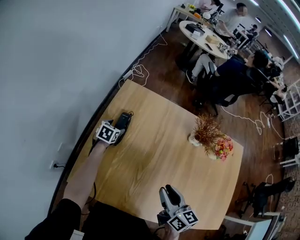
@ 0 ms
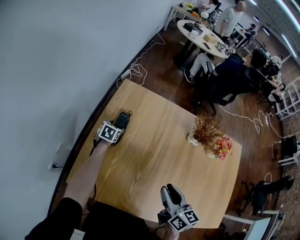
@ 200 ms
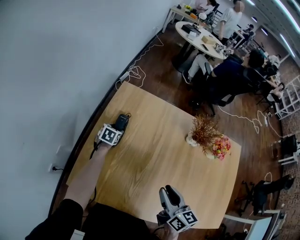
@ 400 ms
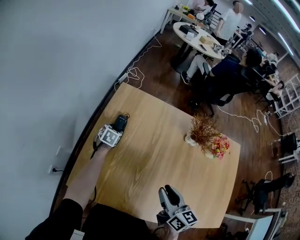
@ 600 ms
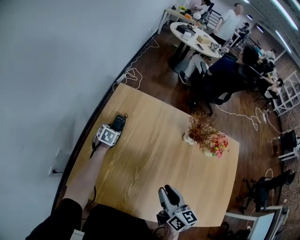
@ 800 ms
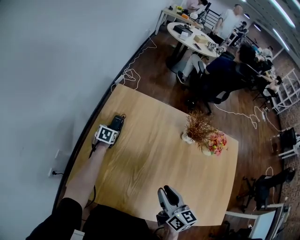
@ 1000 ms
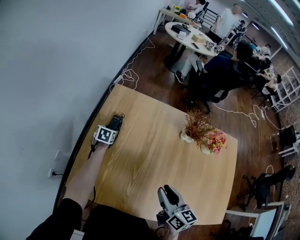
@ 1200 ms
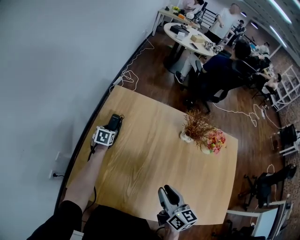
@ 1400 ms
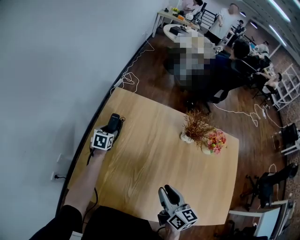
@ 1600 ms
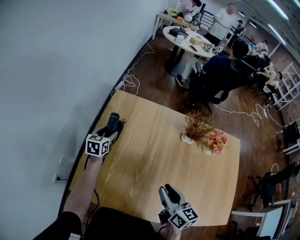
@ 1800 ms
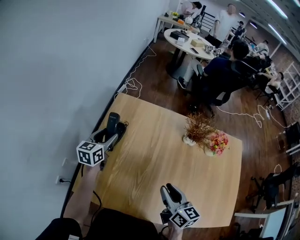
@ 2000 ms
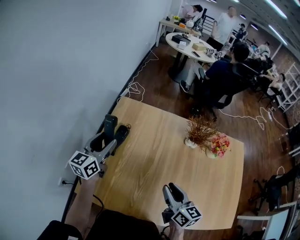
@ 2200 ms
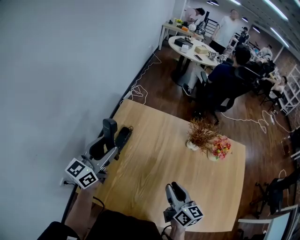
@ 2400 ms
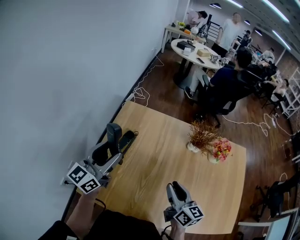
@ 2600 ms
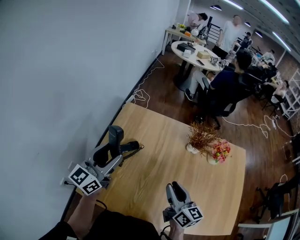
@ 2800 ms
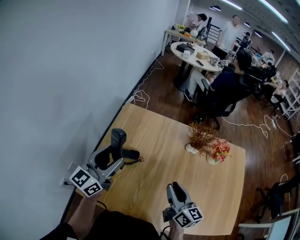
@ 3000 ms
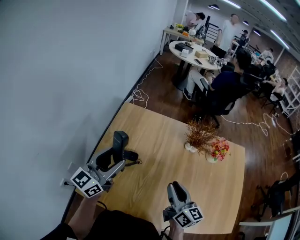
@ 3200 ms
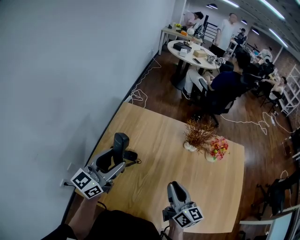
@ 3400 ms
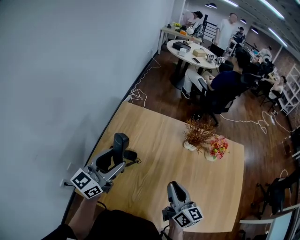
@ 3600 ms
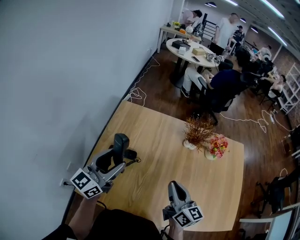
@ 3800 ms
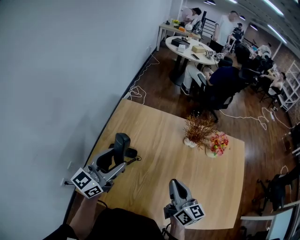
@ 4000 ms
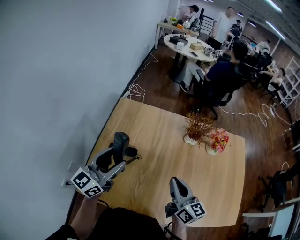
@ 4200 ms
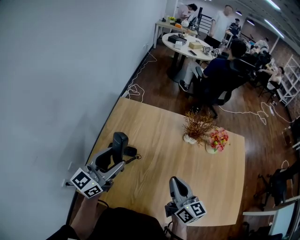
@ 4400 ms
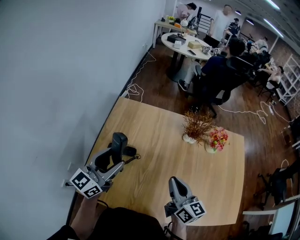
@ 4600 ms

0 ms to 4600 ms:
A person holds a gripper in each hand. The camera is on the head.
0 ms to 1600 ms: The grippers make only small movements.
1600 ms to 3000 ms: The right gripper changes place by roughly 5 cm. Meanwhile the left gripper shifts about 35 cm upward and backward, and angles its fingers upward, by roughly 50 degrees.
3000 ms to 4600 ms: The right gripper closes its fingers.

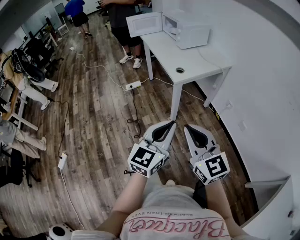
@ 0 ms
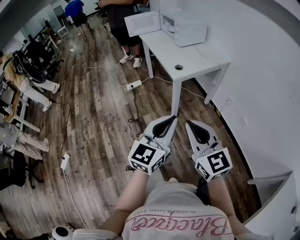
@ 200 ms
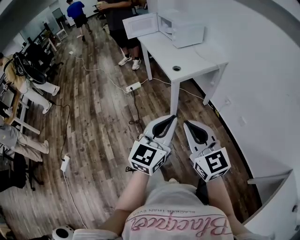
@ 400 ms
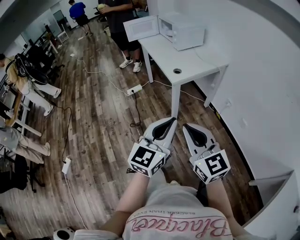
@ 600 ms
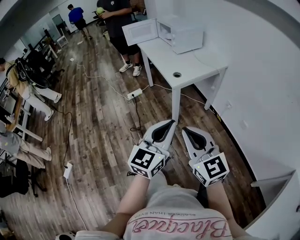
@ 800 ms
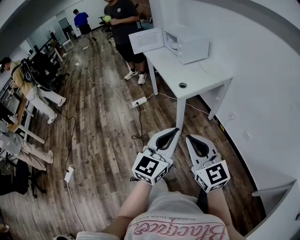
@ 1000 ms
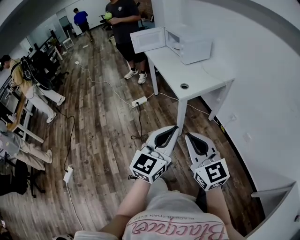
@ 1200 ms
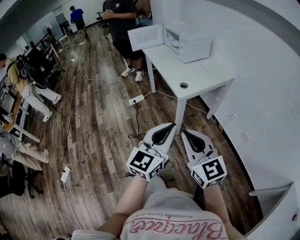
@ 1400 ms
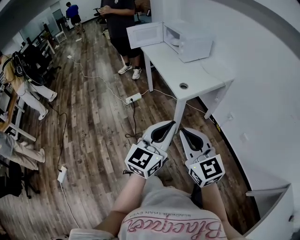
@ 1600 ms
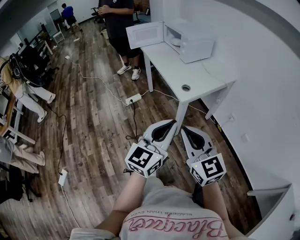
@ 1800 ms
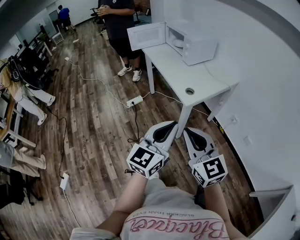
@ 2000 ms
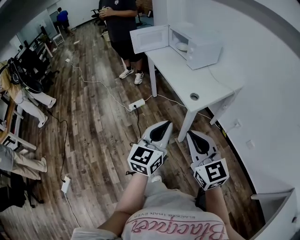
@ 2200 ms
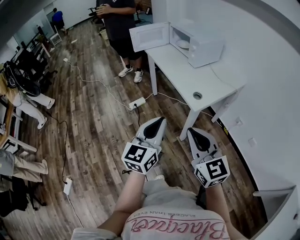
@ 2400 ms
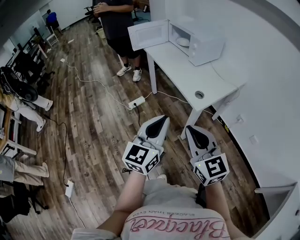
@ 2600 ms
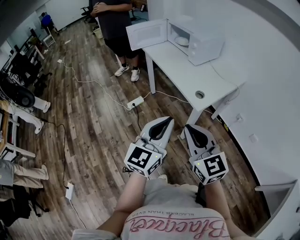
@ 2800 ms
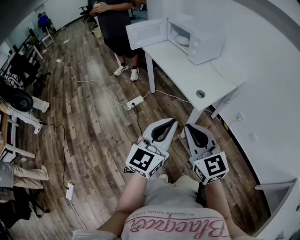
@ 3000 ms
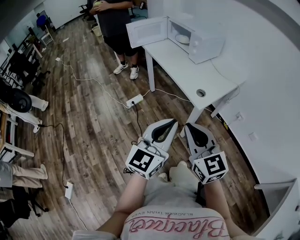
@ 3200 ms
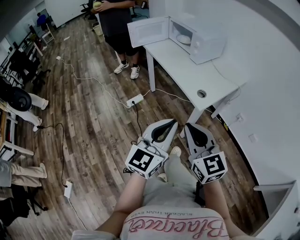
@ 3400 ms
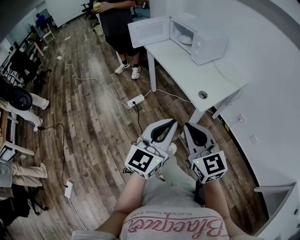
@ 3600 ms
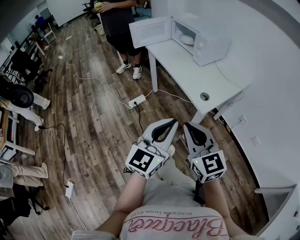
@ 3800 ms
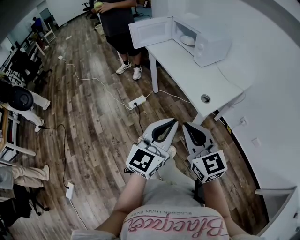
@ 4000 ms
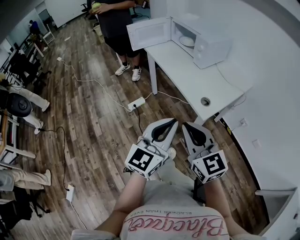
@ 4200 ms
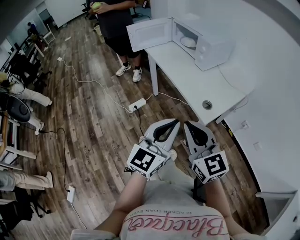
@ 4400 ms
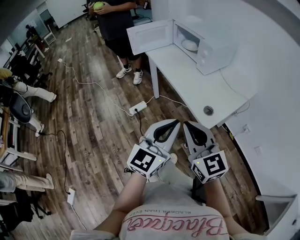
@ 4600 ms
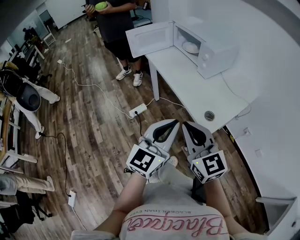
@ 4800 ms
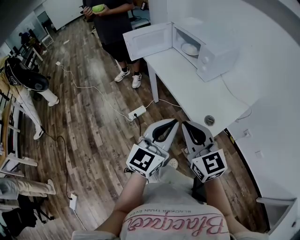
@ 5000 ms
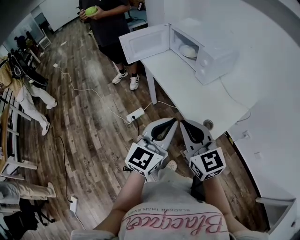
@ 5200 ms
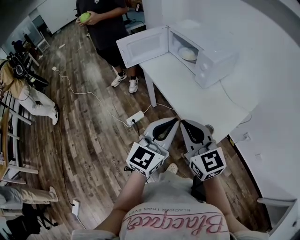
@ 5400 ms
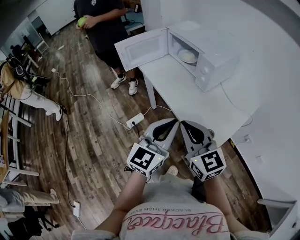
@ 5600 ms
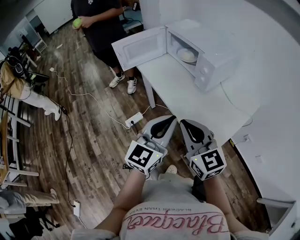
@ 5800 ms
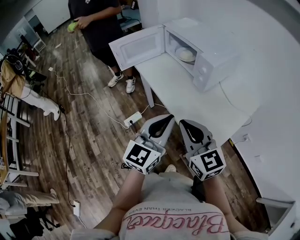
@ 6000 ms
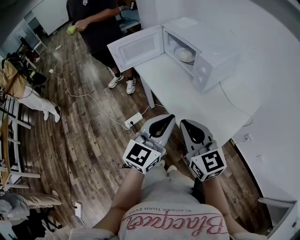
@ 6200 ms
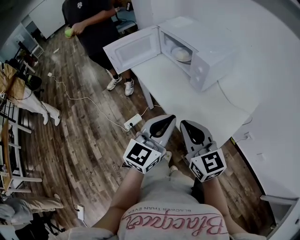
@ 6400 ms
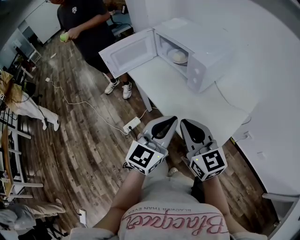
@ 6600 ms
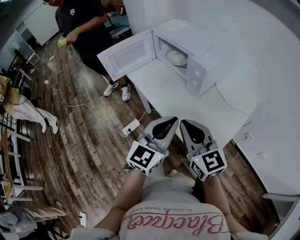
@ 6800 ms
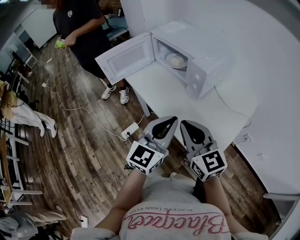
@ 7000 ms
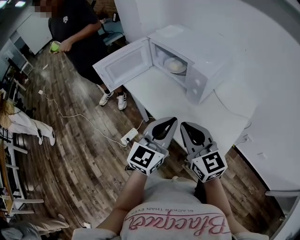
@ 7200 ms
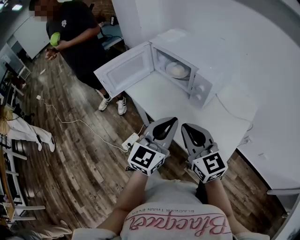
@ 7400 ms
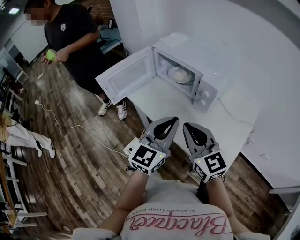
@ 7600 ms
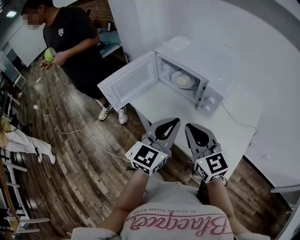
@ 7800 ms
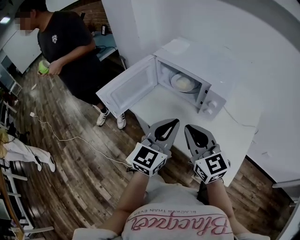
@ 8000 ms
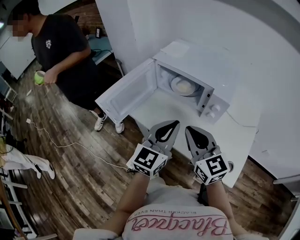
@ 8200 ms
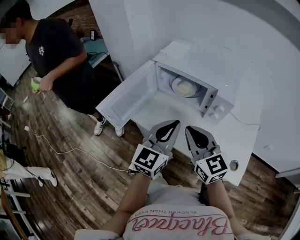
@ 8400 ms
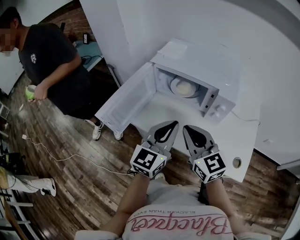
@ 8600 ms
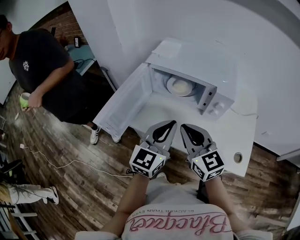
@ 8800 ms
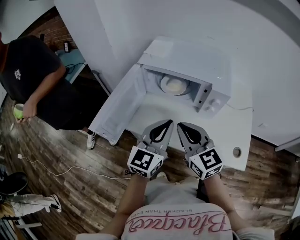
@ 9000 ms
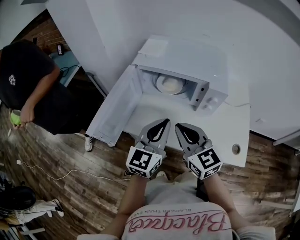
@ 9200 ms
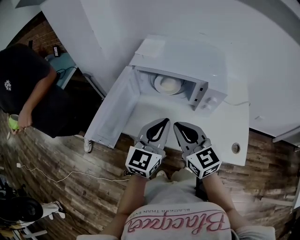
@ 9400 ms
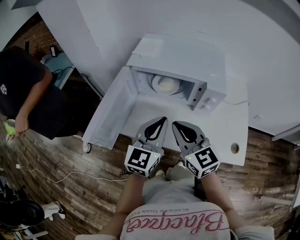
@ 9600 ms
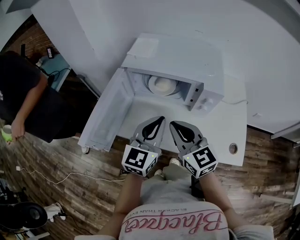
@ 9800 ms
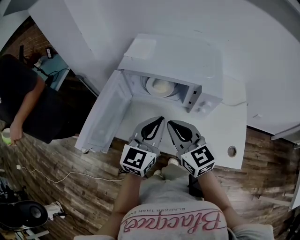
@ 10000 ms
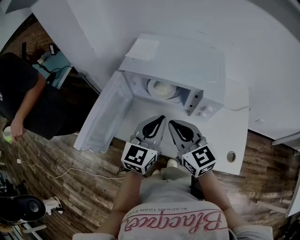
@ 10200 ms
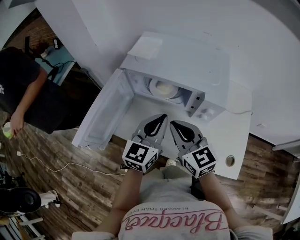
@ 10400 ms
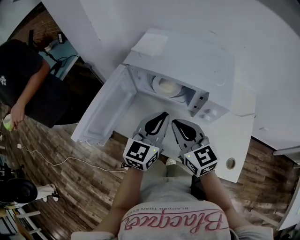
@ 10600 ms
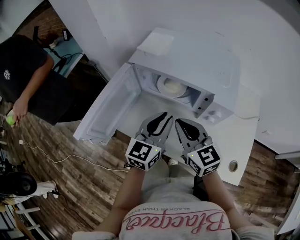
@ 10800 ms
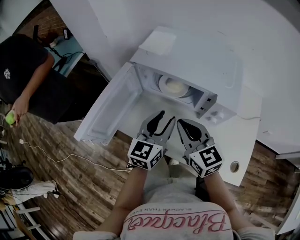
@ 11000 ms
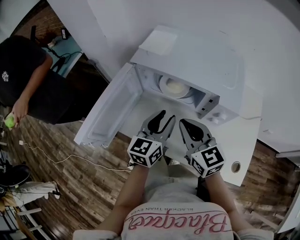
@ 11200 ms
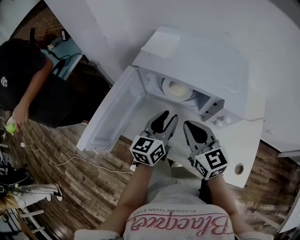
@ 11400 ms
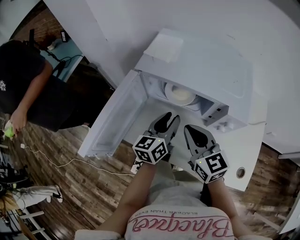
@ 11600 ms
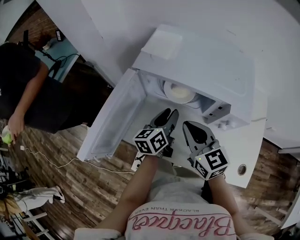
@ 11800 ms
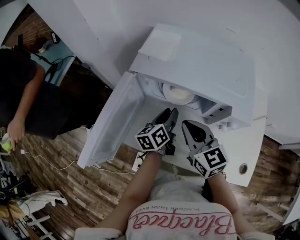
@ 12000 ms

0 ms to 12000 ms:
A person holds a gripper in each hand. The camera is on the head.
0 ms to 1600 ms: The left gripper goes about 10 cm forward. Meanwhile the right gripper goes about 10 cm forward and to the left.
1600 ms to 3000 ms: The left gripper heads to the left and forward, covering roughly 20 cm, while the right gripper travels forward and to the left by about 20 cm.
3000 ms to 4400 ms: The grippers both shift forward by about 10 cm.
4400 ms to 6000 ms: The grippers both shift forward by roughly 25 cm.
6000 ms to 7600 ms: The grippers both shift forward by some 15 cm.
7600 ms to 9000 ms: The two grippers go approximately 20 cm to the left and forward. The right gripper changes its angle by approximately 20 degrees.
9000 ms to 10400 ms: The two grippers go about 10 cm forward.
10400 ms to 12000 ms: The left gripper shifts approximately 20 cm downward and forward, rotates around the line of its fingers by about 40 degrees, counterclockwise from behind, and opens up, while the right gripper shifts about 10 cm forward and downward.

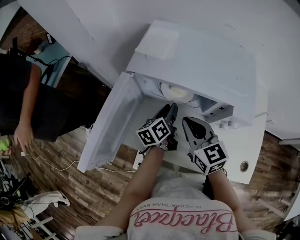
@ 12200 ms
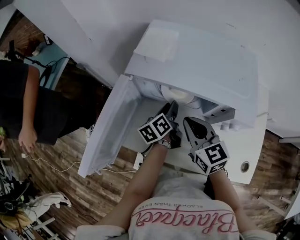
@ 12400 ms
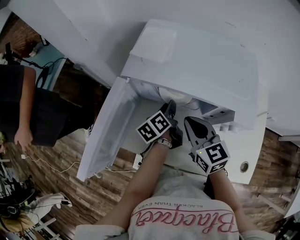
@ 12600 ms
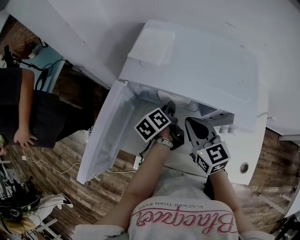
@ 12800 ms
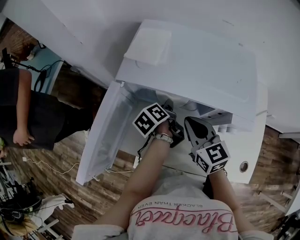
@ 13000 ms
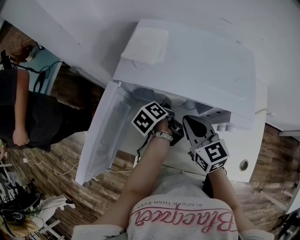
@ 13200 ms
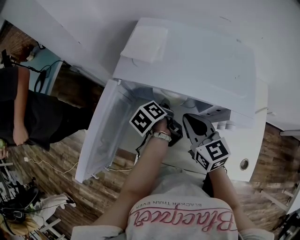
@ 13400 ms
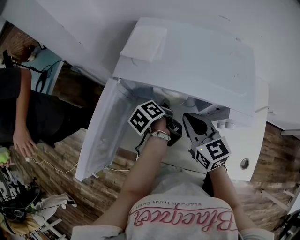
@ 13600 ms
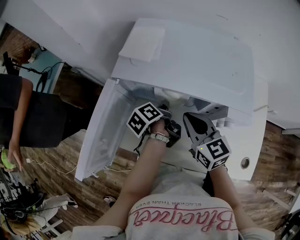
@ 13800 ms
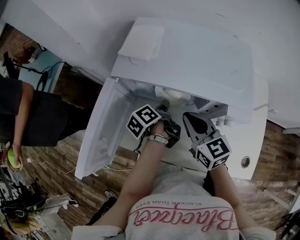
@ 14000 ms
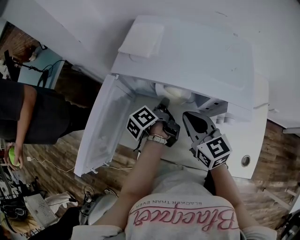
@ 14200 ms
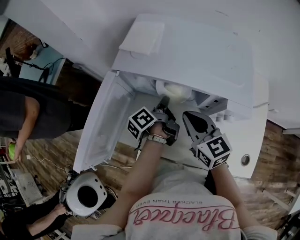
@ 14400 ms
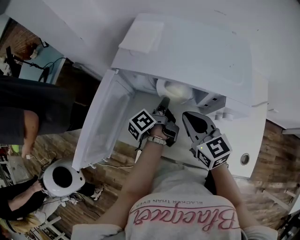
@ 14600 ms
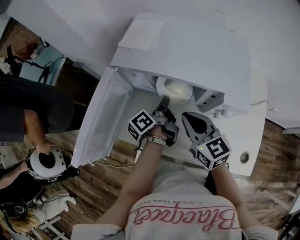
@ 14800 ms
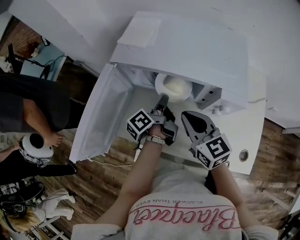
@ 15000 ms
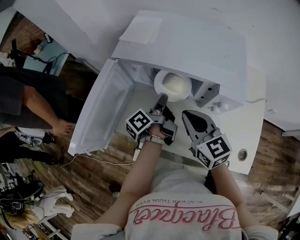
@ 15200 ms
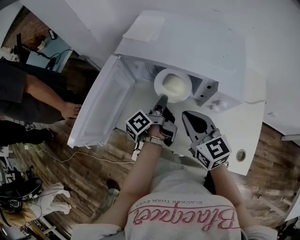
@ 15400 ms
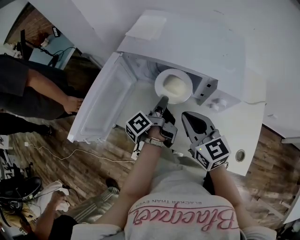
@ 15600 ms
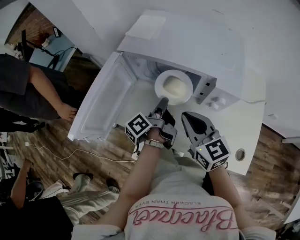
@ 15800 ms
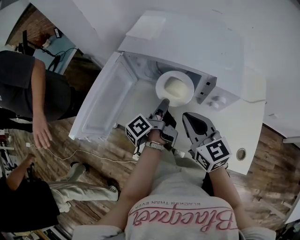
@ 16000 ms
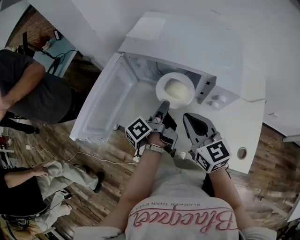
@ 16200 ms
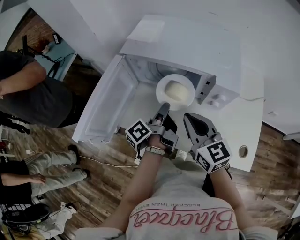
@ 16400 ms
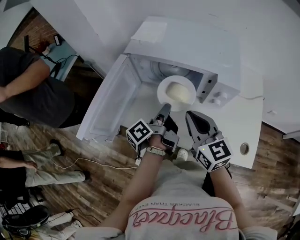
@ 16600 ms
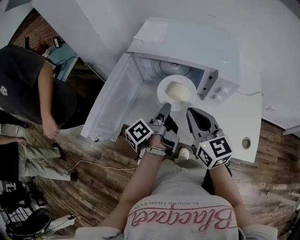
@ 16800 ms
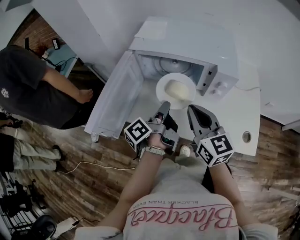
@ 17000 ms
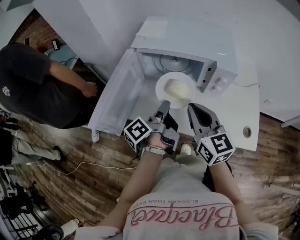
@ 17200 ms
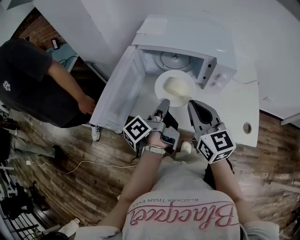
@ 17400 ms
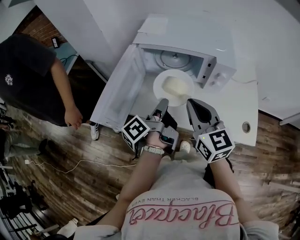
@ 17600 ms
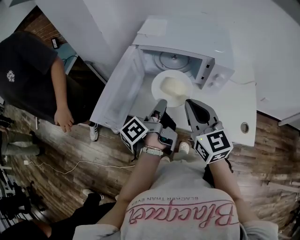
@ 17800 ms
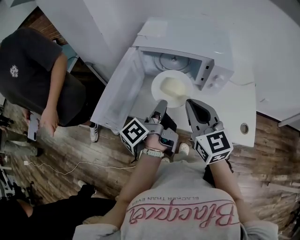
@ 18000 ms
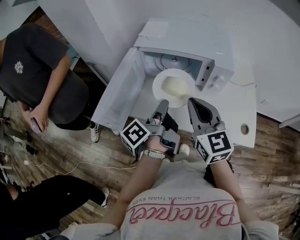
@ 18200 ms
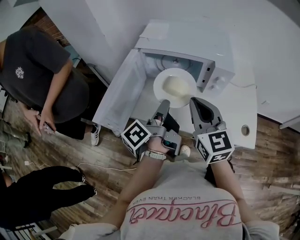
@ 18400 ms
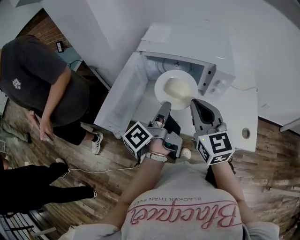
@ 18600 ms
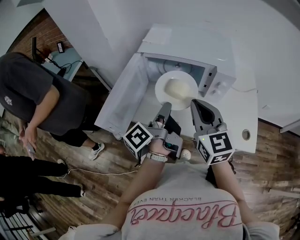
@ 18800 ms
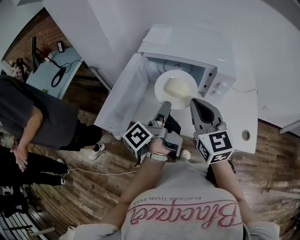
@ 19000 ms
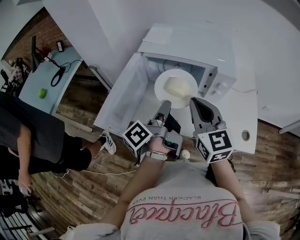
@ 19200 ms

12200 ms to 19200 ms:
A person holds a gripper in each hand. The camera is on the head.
12200 ms to 13600 ms: The left gripper swivels approximately 30 degrees.
13600 ms to 15000 ms: The right gripper shifts some 5 cm backward; the left gripper changes place by about 5 cm, and changes its angle by approximately 30 degrees.
15000 ms to 16400 ms: Both grippers move backward, some 5 cm.
16400 ms to 17800 ms: The right gripper shifts approximately 10 cm upward and backward. Meanwhile the left gripper travels backward, upward and to the left by about 15 cm.
17800 ms to 19200 ms: There are only small adjustments of the grippers.
